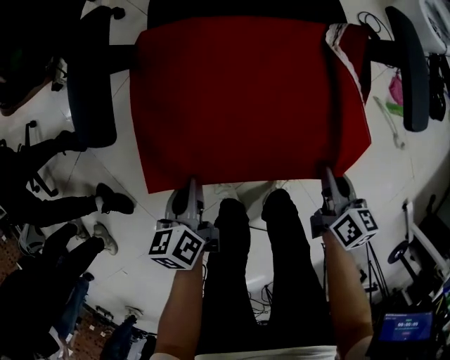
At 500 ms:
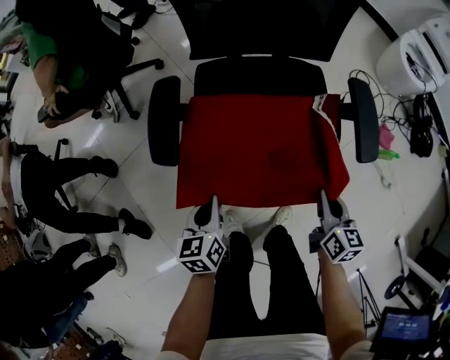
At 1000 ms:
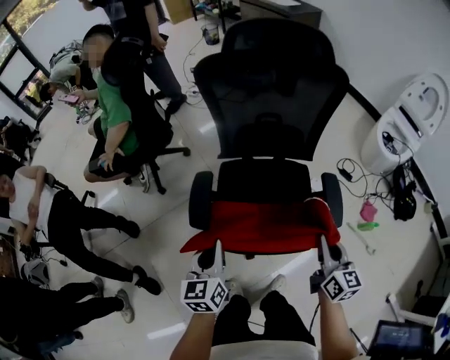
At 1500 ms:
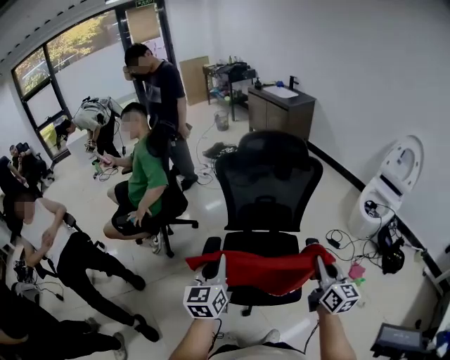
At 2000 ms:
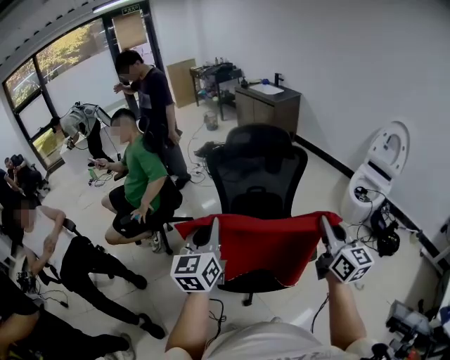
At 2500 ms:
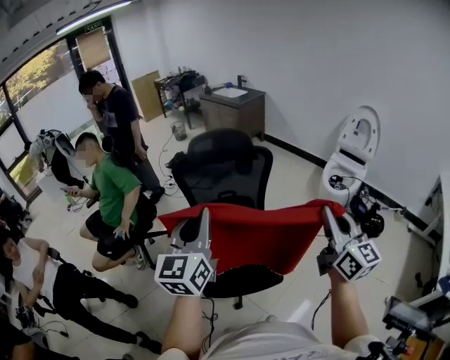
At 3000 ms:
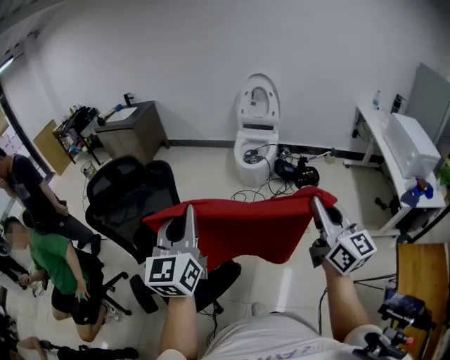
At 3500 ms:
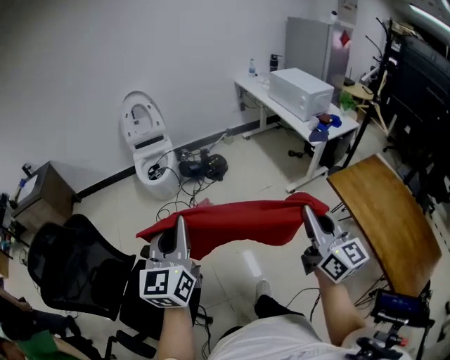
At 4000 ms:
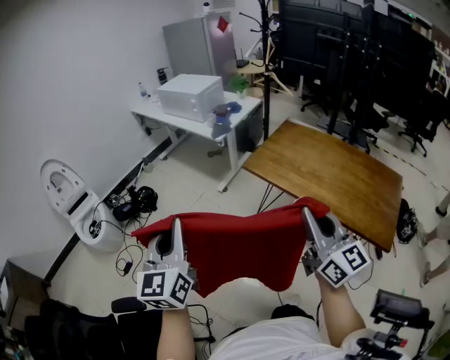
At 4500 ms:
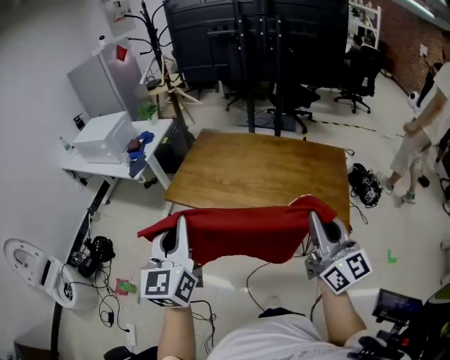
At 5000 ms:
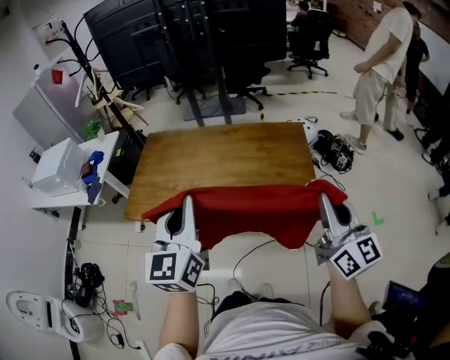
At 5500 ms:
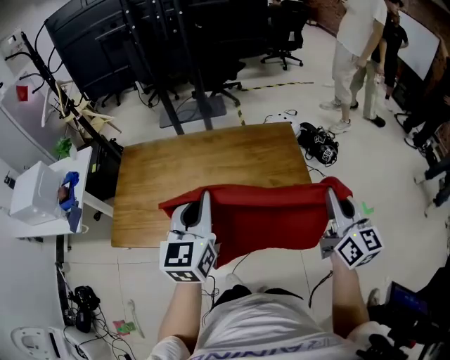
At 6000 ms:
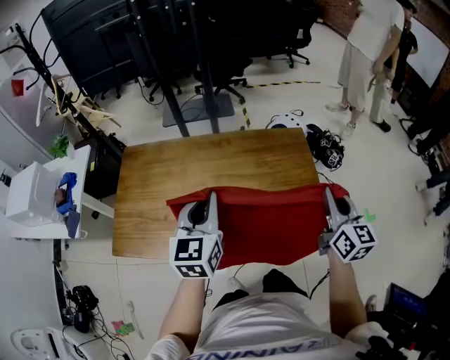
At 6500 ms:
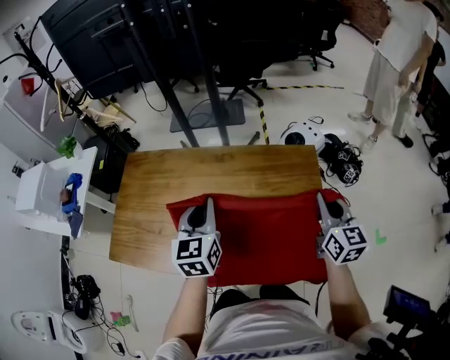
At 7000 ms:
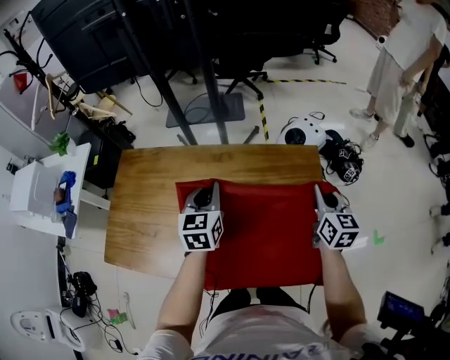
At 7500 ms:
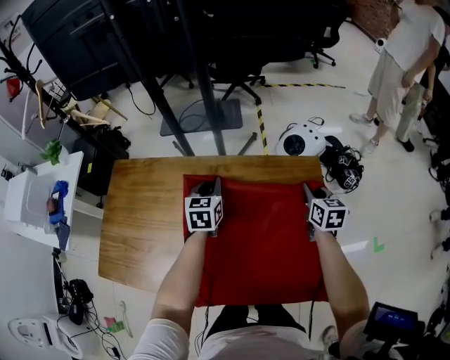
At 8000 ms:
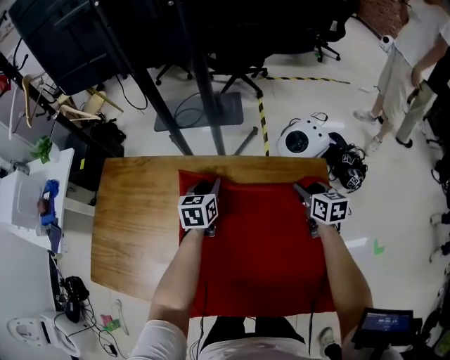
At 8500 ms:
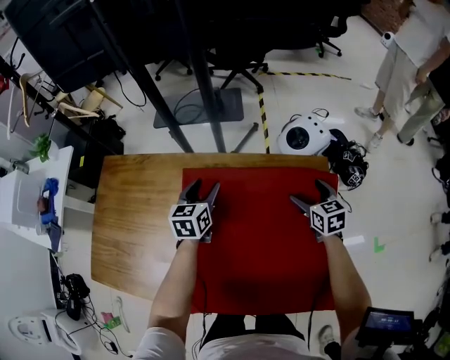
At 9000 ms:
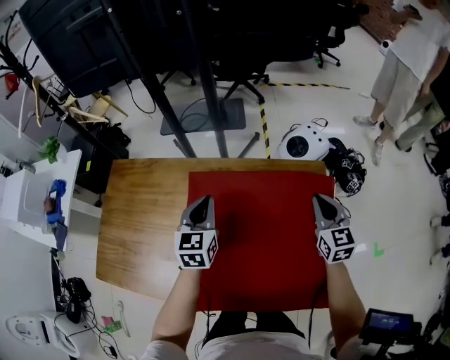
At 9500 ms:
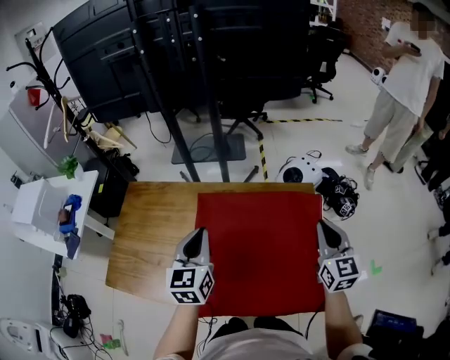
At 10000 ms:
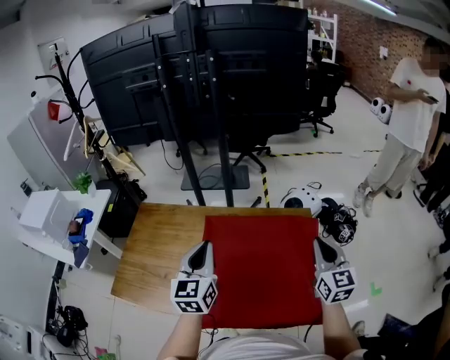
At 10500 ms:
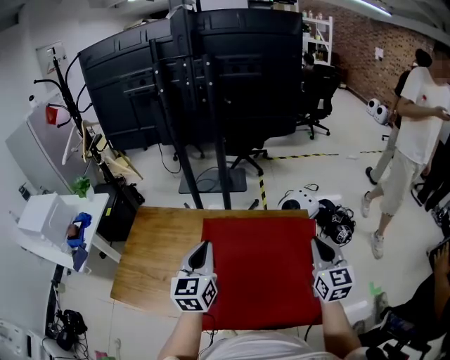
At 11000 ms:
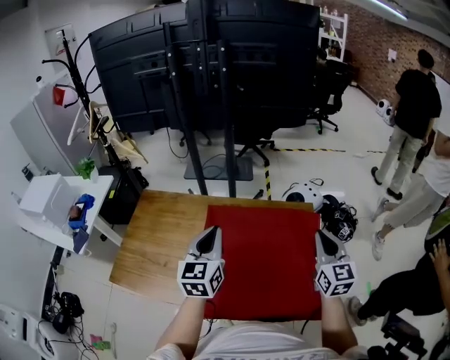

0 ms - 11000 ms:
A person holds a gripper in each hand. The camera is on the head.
0 ms - 2000 ms: The two grippers go approximately 60 cm upward. The left gripper angles its fingers upward, by roughly 40 degrees. The right gripper tips its fingers upward by roughly 40 degrees.
2000 ms - 3500 ms: The left gripper changes place by approximately 50 cm, and changes its angle by roughly 70 degrees. Meanwhile the right gripper ends up about 50 cm from where it was, and swivels about 70 degrees.
3500 ms - 5500 ms: The pair of grippers is taken some 80 cm. The right gripper turns by about 80 degrees. The left gripper swivels some 80 degrees.
5500 ms - 7500 ms: Both grippers travel together forward and downward, some 40 cm. The left gripper changes its angle by approximately 20 degrees. Meanwhile the right gripper tips its fingers downward by approximately 30 degrees.
7500 ms - 9000 ms: The left gripper shifts some 5 cm backward, and opens and closes again; the right gripper moves upward, approximately 5 cm, changes its angle by approximately 20 degrees, and opens and closes again.
9000 ms - 11000 ms: Both grippers move upward and backward, about 20 cm.

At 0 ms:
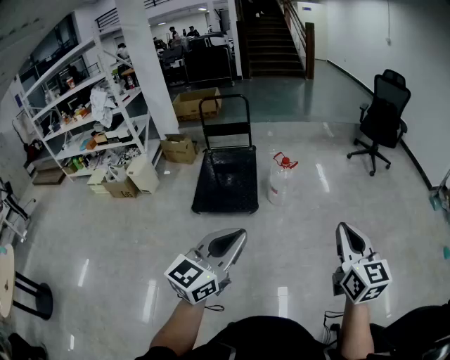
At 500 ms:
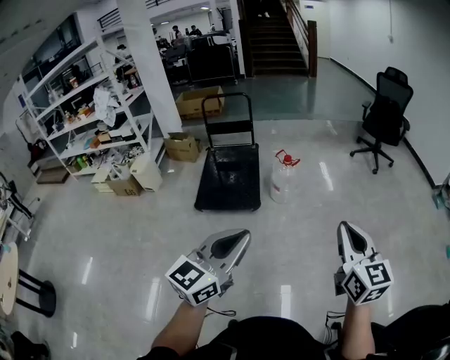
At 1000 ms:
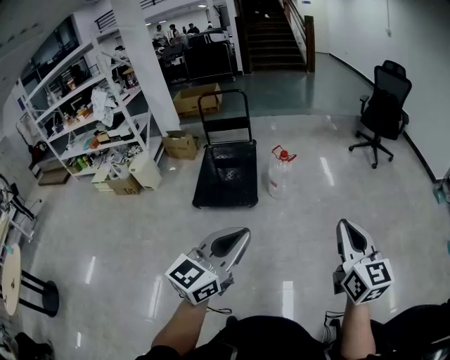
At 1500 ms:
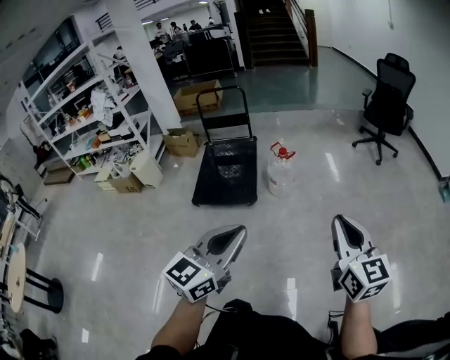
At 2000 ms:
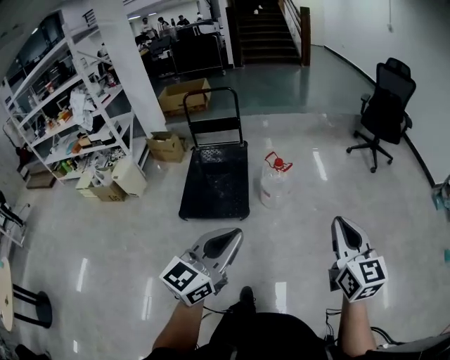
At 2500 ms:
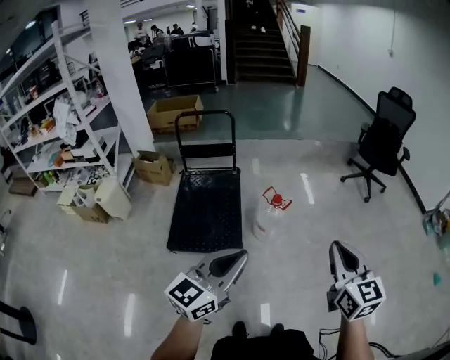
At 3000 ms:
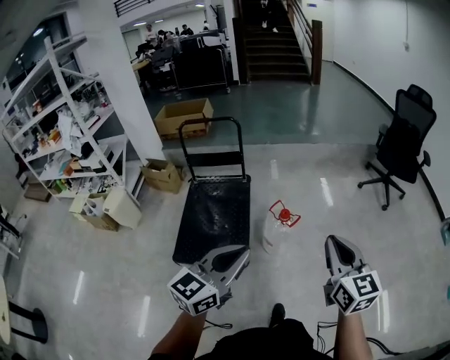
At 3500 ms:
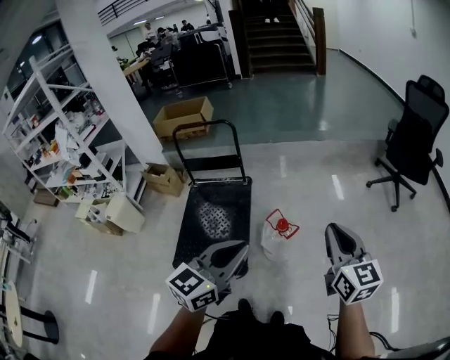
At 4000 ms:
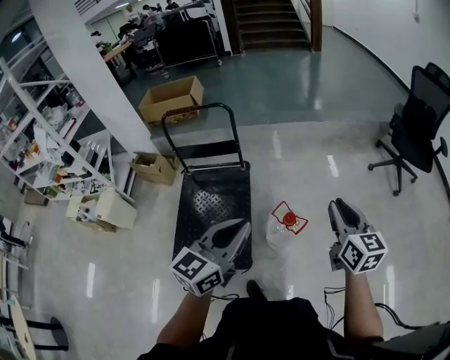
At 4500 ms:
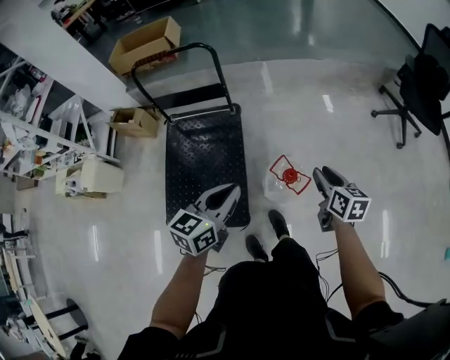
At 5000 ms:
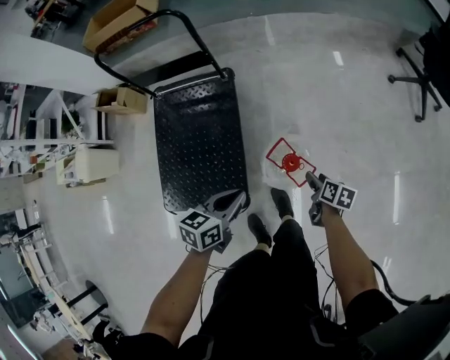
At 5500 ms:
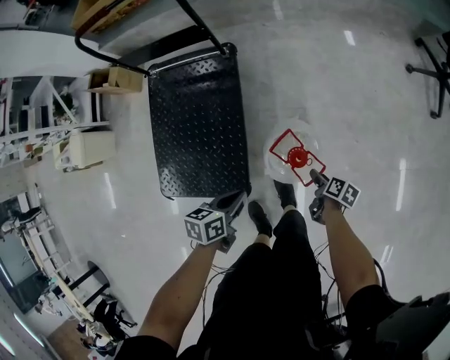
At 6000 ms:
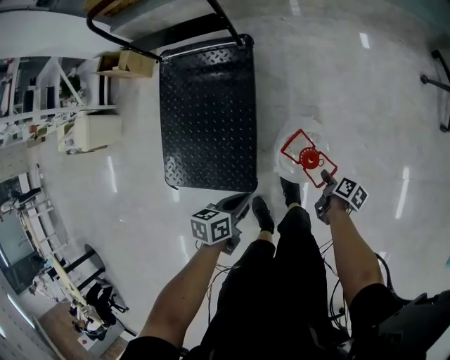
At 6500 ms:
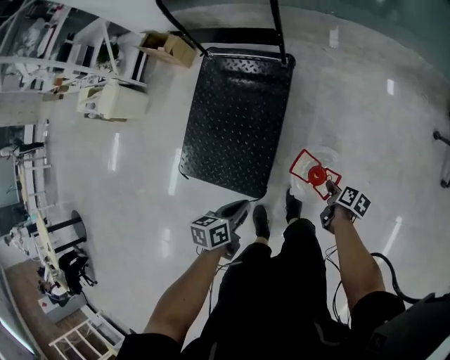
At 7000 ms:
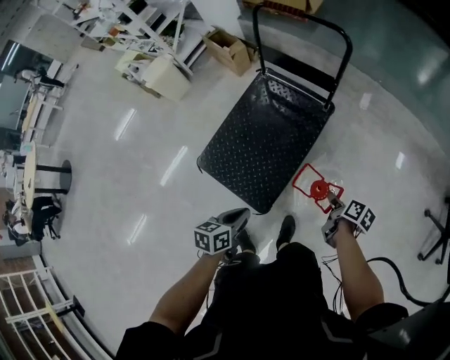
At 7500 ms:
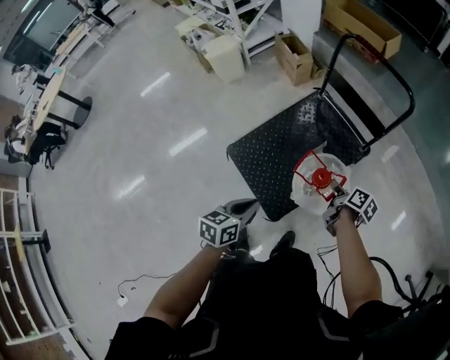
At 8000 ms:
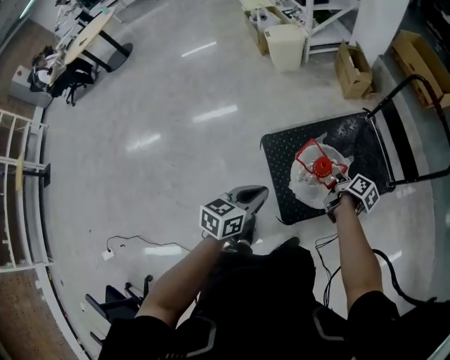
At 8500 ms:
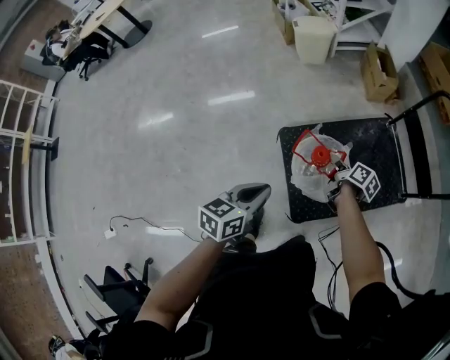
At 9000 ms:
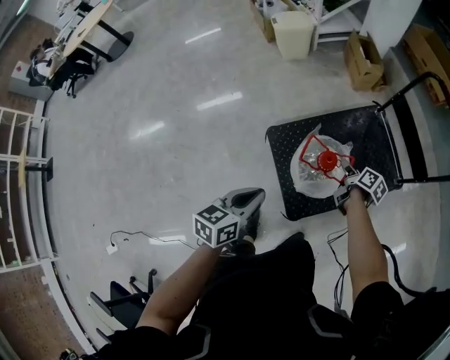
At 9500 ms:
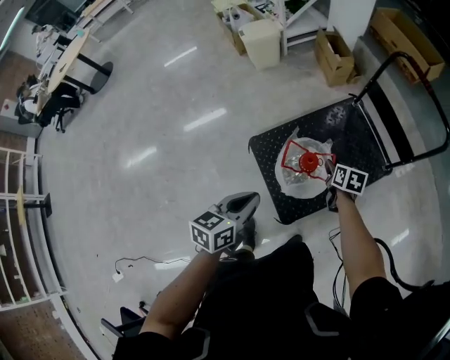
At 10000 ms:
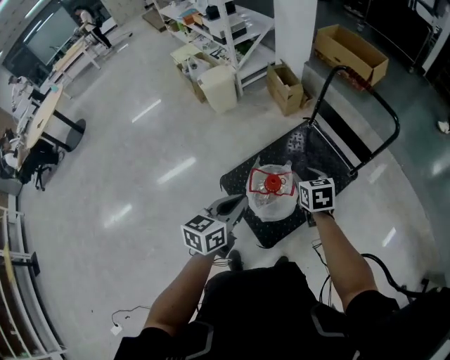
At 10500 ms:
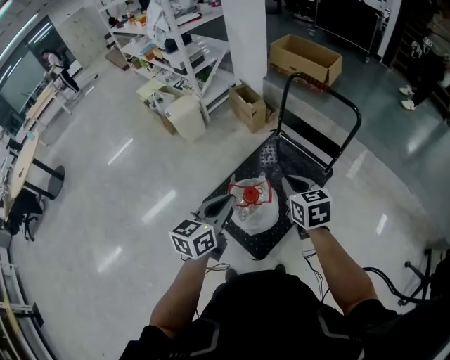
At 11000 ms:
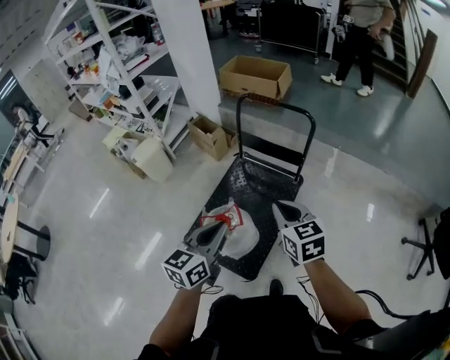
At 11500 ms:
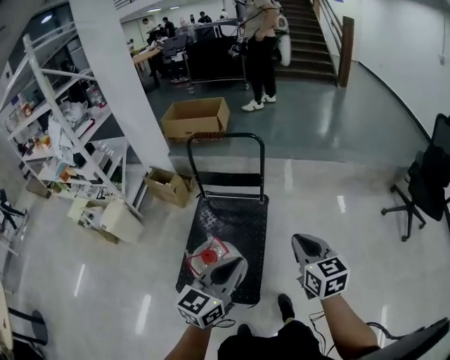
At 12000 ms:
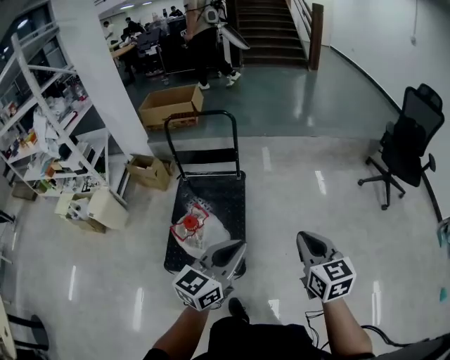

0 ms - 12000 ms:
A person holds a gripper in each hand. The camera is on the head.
0 ms - 2000 ms: Both grippers travel together forward, approximately 20 cm.
2000 ms - 4000 ms: The pair of grippers is taken forward, approximately 60 cm.
4000 ms - 6000 ms: Both grippers travel together downward, some 50 cm. The left gripper angles its fingers downward, by roughly 40 degrees. Meanwhile the right gripper tips its fingers downward by approximately 40 degrees, and opens, then closes again.
6000 ms - 8000 ms: The left gripper shifts by roughly 40 cm, and swivels approximately 60 degrees. Meanwhile the right gripper shifts by approximately 60 cm, and turns by approximately 60 degrees.
8000 ms - 10000 ms: The left gripper is displaced upward, forward and to the right by some 10 cm. Meanwhile the right gripper goes roughly 15 cm upward, rotates around the line of its fingers by some 50 degrees, counterclockwise from behind, and opens.
10000 ms - 12000 ms: The right gripper moves roughly 50 cm, rotates roughly 60 degrees, and closes its fingers. Meanwhile the left gripper shifts by approximately 30 cm, and changes its angle by some 60 degrees.

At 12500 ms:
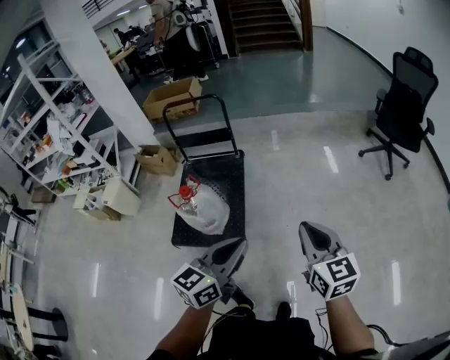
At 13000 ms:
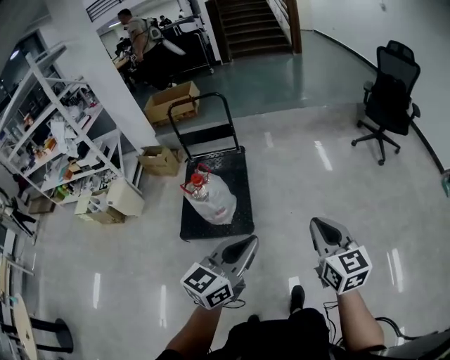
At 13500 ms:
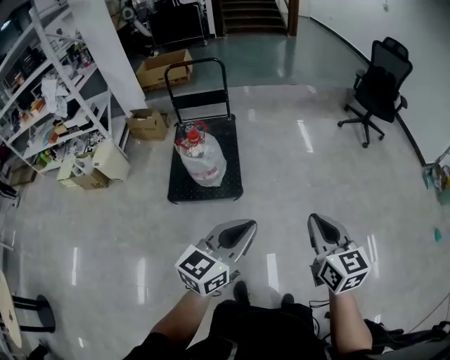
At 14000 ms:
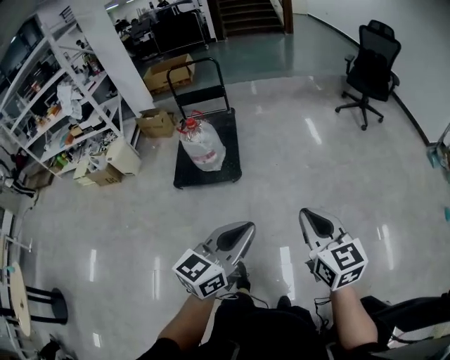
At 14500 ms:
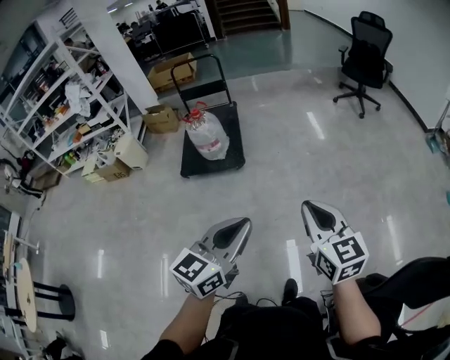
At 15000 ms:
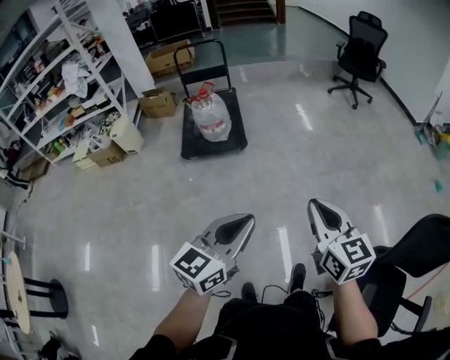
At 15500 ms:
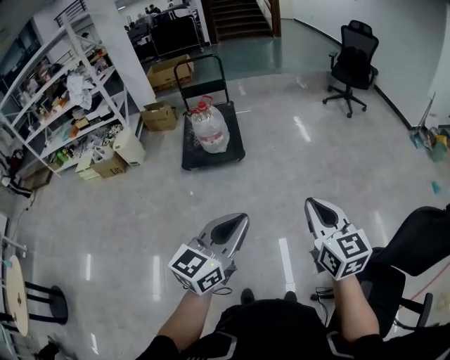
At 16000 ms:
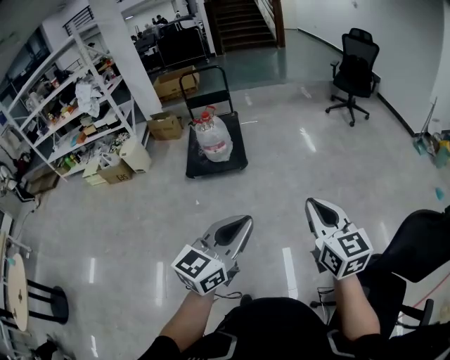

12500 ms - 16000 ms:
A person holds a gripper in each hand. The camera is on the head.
12500 ms - 14500 ms: The pair of grippers is taken backward, some 60 cm.
14500 ms - 16000 ms: The two grippers go some 20 cm backward.
